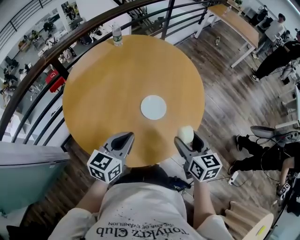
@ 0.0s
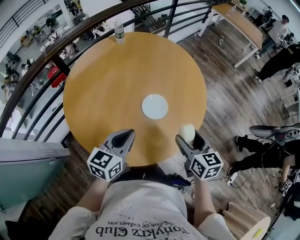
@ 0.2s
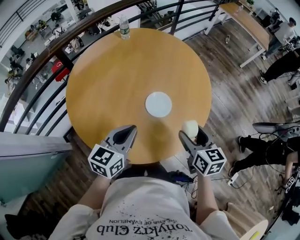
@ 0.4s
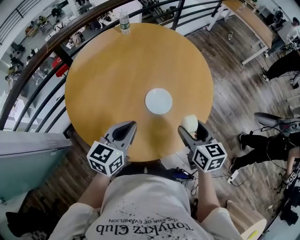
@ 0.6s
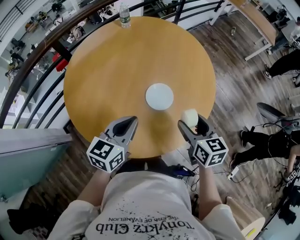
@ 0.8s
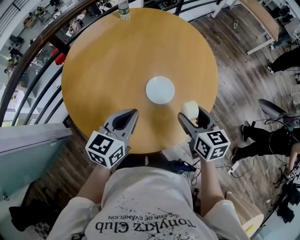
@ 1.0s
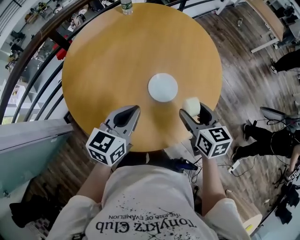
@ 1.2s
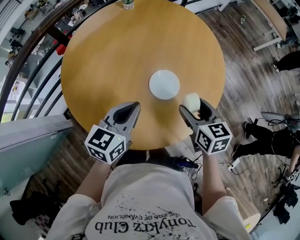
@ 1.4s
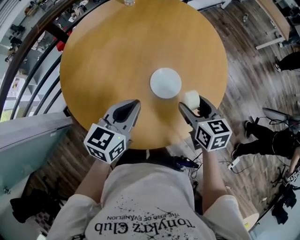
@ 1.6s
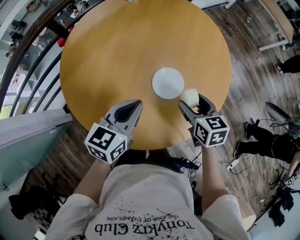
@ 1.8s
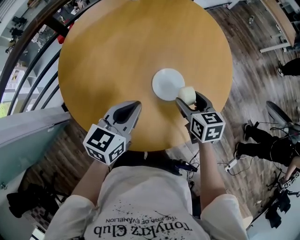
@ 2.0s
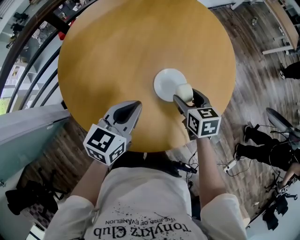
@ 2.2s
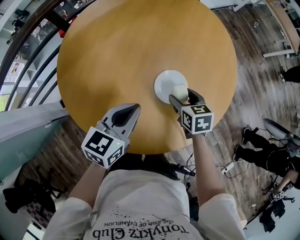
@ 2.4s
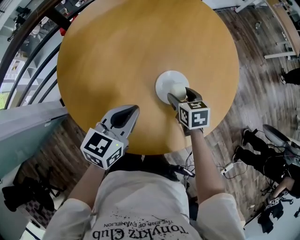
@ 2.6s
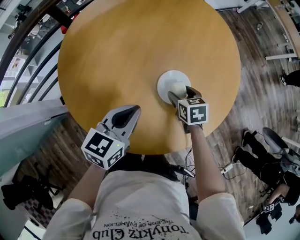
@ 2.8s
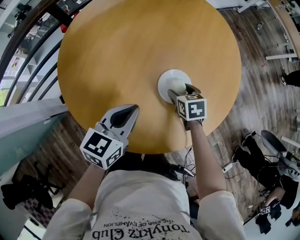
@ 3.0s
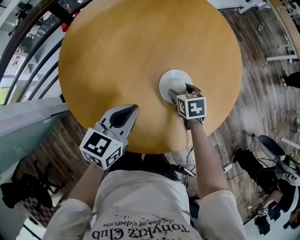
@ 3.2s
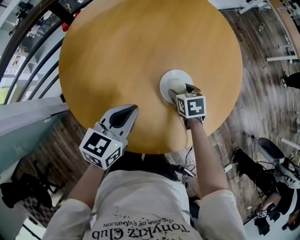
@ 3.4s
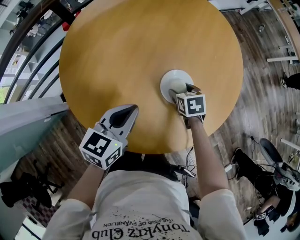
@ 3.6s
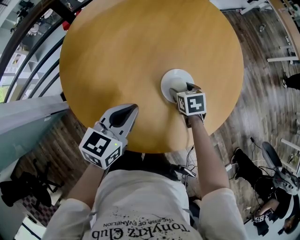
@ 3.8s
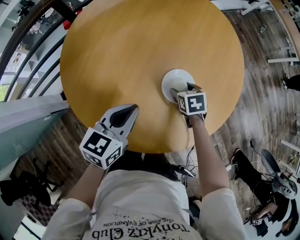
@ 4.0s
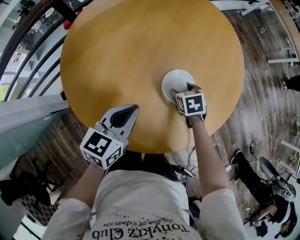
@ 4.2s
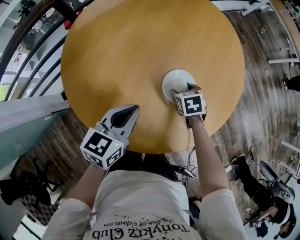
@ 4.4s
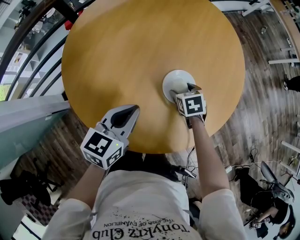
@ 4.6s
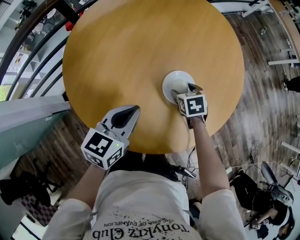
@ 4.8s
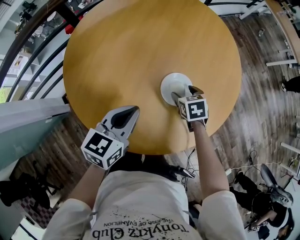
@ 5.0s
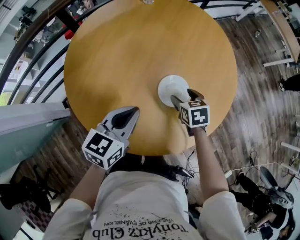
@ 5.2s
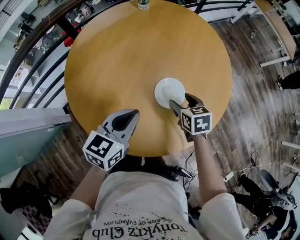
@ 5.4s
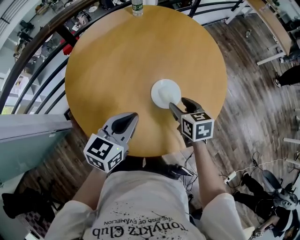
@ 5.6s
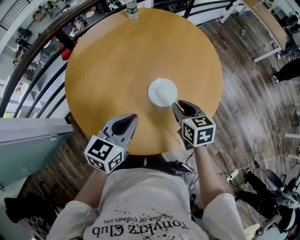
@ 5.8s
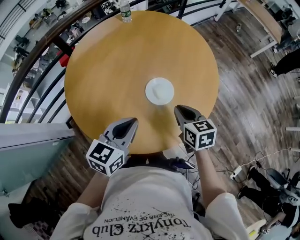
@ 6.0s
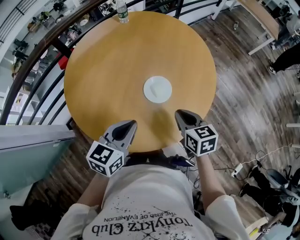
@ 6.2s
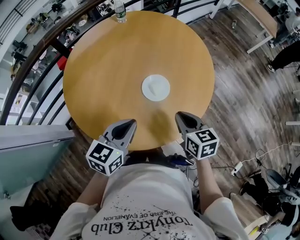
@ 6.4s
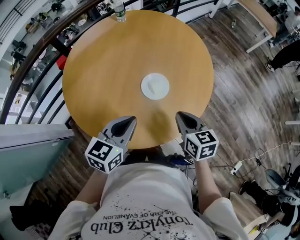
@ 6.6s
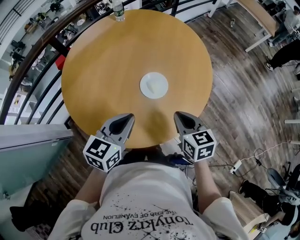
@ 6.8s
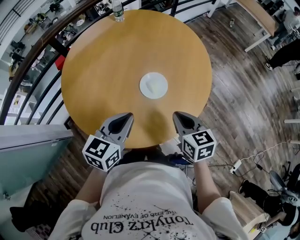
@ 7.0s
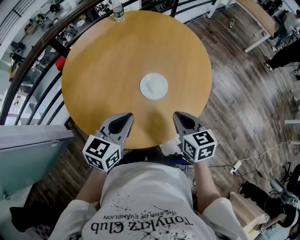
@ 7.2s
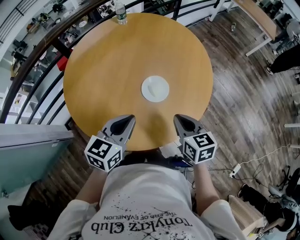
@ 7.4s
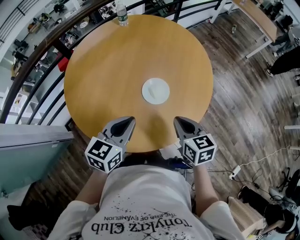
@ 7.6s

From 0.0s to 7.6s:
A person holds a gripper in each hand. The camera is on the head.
From 0.0s to 1.6s: The right gripper heads forward and downward, covering approximately 15 cm; the left gripper is displaced forward by roughly 10 cm.
From 1.6s to 3.0s: The left gripper travels downward by roughly 5 cm. Meanwhile the right gripper is displaced downward and forward by approximately 20 cm, and rotates roughly 20 degrees.
From 3.0s to 4.6s: The grippers make only small movements.
From 4.6s to 6.0s: The left gripper is displaced upward, backward and to the right by approximately 10 cm; the right gripper moves upward and backward, some 20 cm, rotates roughly 30 degrees, and closes up.
From 6.0s to 7.6s: The right gripper is displaced backward by approximately 5 cm.

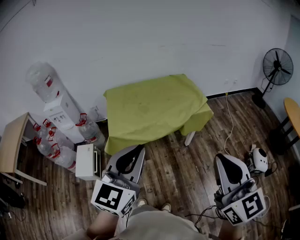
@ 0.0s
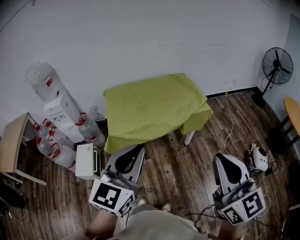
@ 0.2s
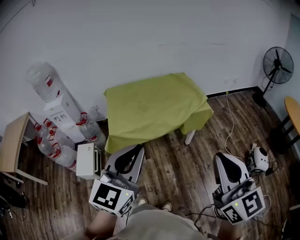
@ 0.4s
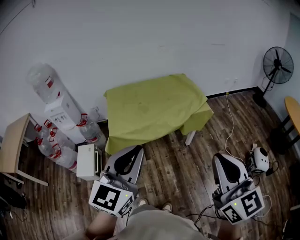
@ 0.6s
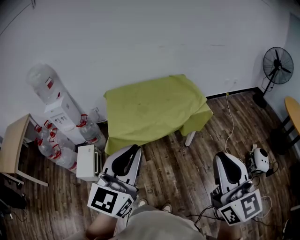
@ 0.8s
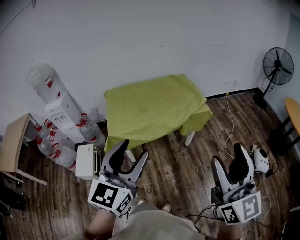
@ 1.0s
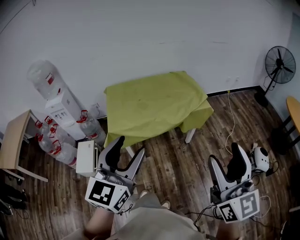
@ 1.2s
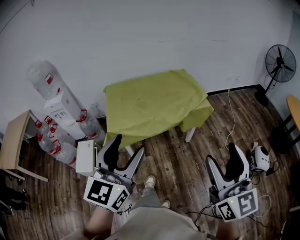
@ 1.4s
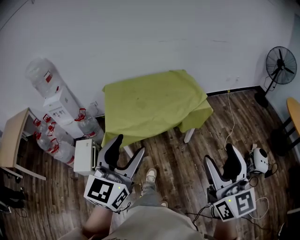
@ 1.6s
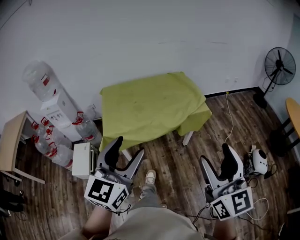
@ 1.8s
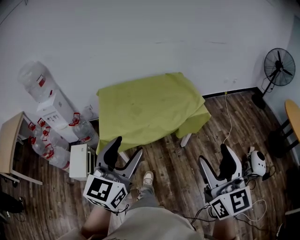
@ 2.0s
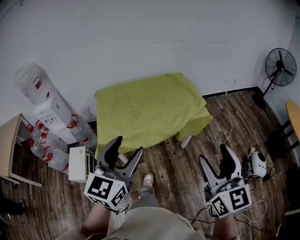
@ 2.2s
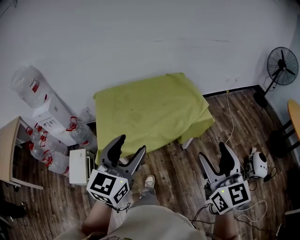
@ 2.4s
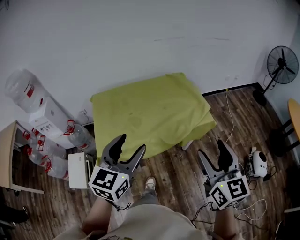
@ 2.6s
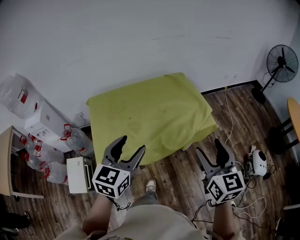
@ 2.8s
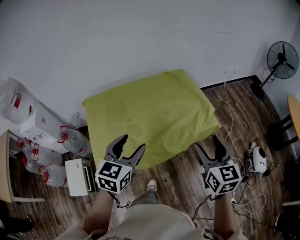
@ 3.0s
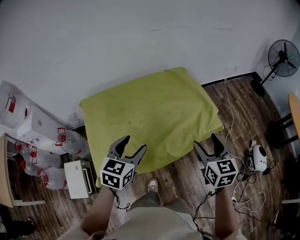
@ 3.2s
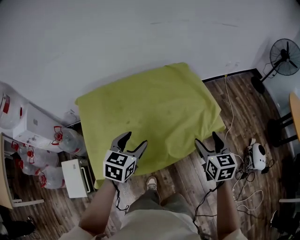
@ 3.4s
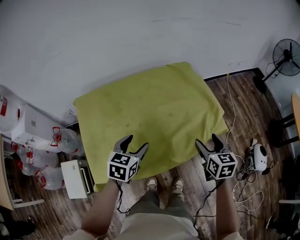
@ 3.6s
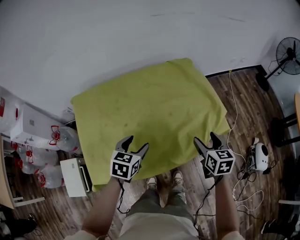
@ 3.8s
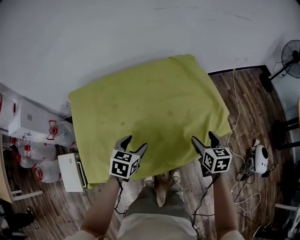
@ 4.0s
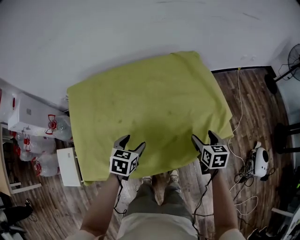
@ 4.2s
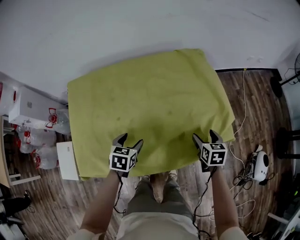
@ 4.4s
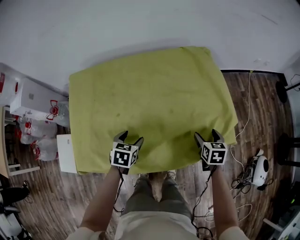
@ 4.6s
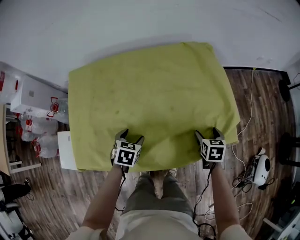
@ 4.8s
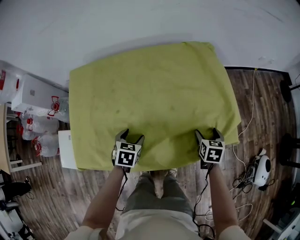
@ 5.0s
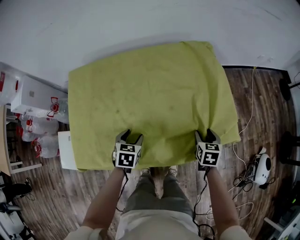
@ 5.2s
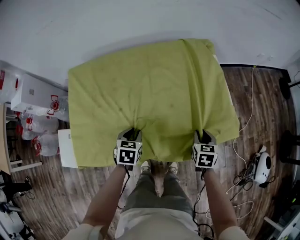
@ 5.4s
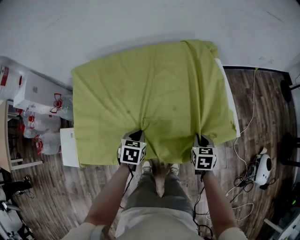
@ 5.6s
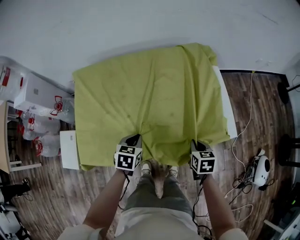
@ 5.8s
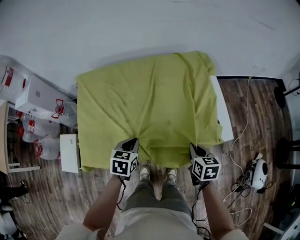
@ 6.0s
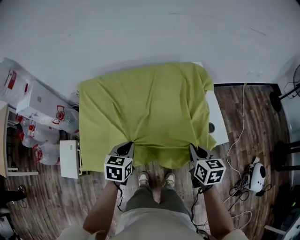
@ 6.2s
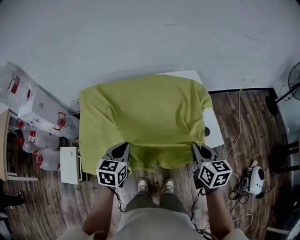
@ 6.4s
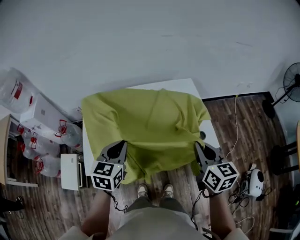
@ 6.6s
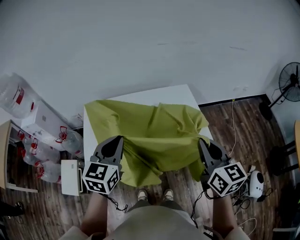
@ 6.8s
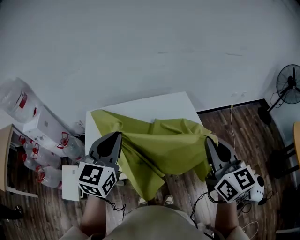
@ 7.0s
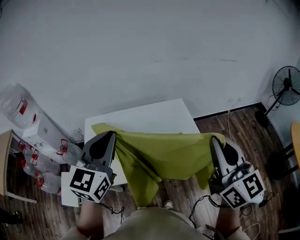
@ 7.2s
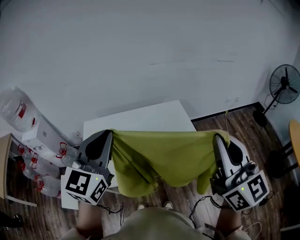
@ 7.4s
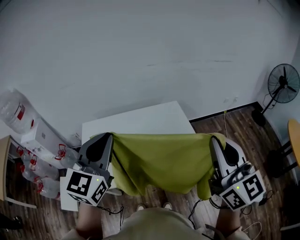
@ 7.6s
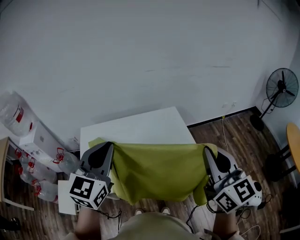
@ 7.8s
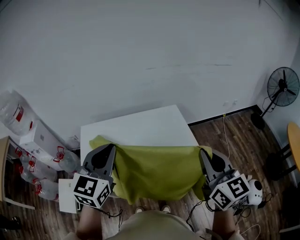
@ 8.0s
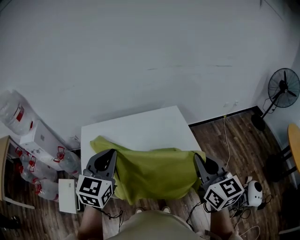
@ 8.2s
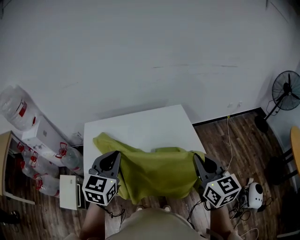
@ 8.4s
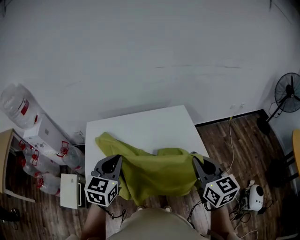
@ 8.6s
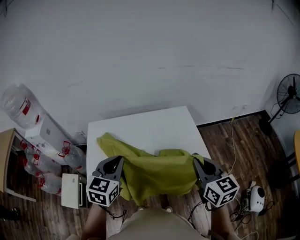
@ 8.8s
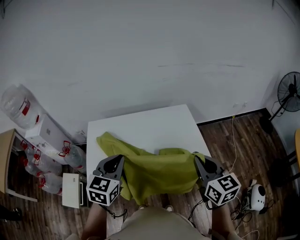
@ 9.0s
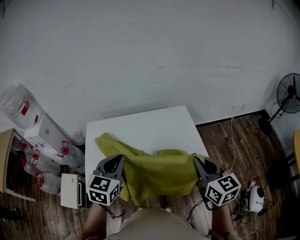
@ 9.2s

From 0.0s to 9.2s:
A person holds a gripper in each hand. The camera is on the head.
From 0.0s to 1.6s: The left gripper opens. Meanwhile the right gripper shifts by roughly 5 cm, and opens up.
From 1.6s to 3.0s: Both grippers are carried forward, roughly 40 cm. The left gripper turns by some 30 degrees; the right gripper swivels roughly 30 degrees.
From 3.0s to 4.6s: The two grippers go about 40 cm downward and forward. The right gripper tilts its fingers some 30 degrees downward. The left gripper tilts its fingers approximately 30 degrees downward.
From 4.6s to 6.2s: The left gripper heads upward and backward, covering some 15 cm, and closes up, while the right gripper heads upward, backward and to the left, covering about 20 cm, and closes its fingers.
From 6.2s to 7.6s: The two grippers go some 40 cm upward. The left gripper points its fingers approximately 40 degrees further upward, while the right gripper points its fingers some 50 degrees further upward.
From 7.6s to 9.2s: Both grippers travel together downward, approximately 15 cm. The right gripper turns by some 20 degrees; the left gripper changes its angle by approximately 20 degrees.

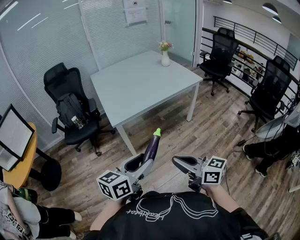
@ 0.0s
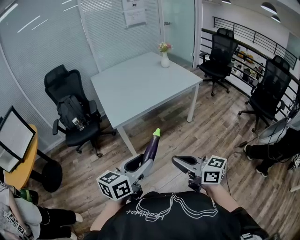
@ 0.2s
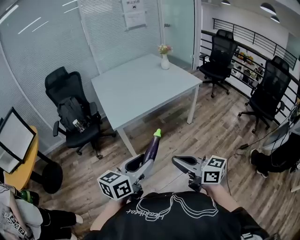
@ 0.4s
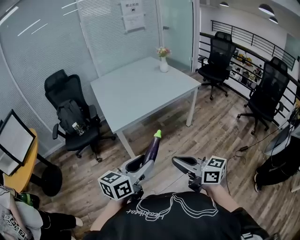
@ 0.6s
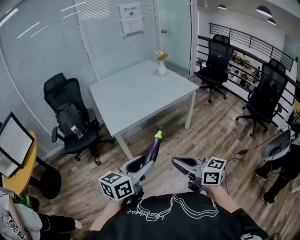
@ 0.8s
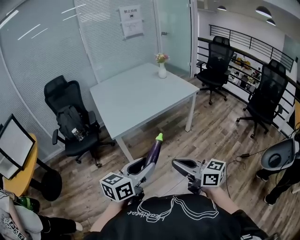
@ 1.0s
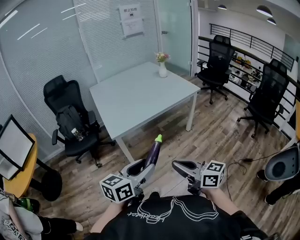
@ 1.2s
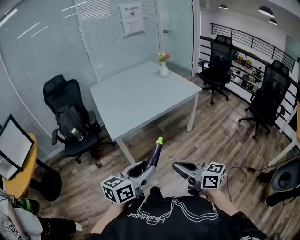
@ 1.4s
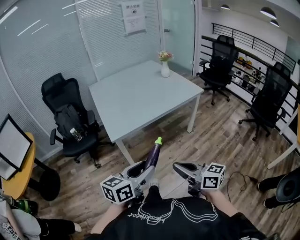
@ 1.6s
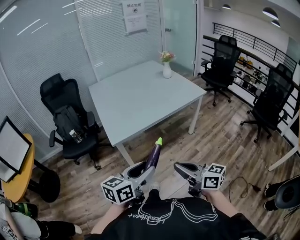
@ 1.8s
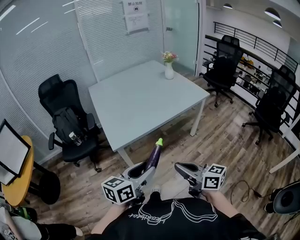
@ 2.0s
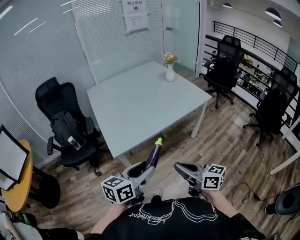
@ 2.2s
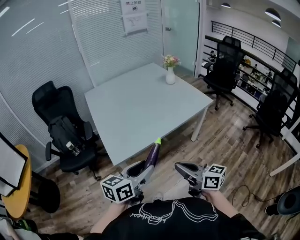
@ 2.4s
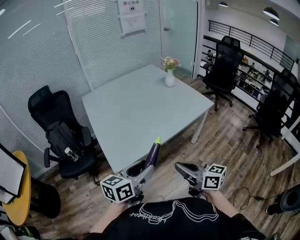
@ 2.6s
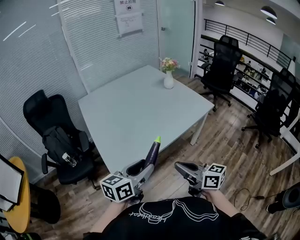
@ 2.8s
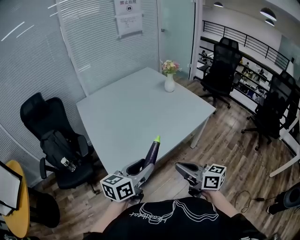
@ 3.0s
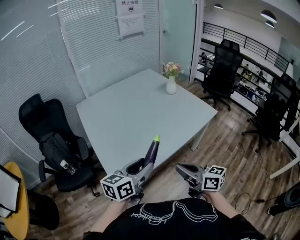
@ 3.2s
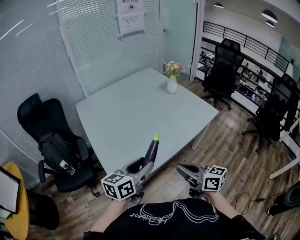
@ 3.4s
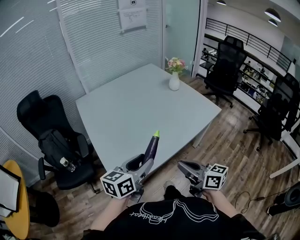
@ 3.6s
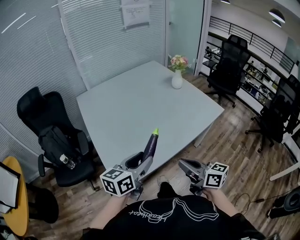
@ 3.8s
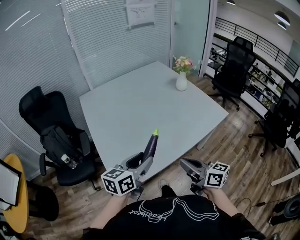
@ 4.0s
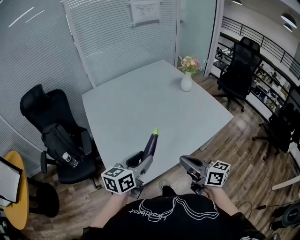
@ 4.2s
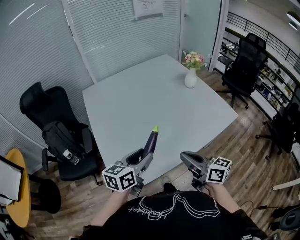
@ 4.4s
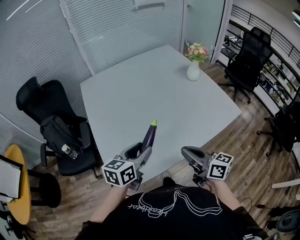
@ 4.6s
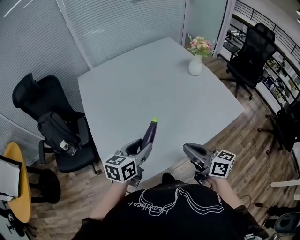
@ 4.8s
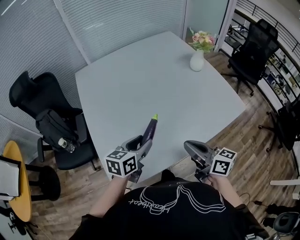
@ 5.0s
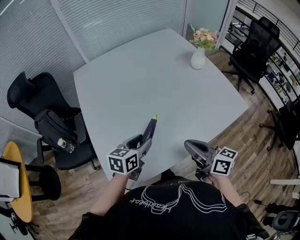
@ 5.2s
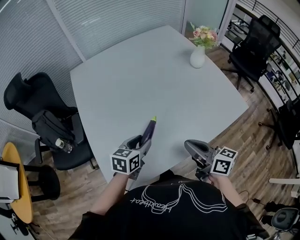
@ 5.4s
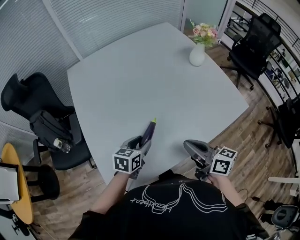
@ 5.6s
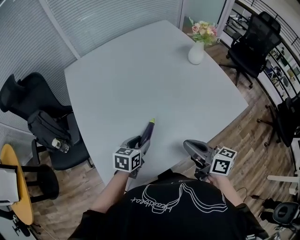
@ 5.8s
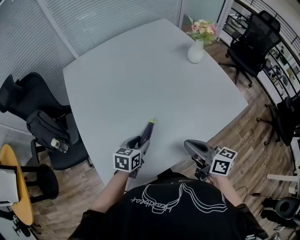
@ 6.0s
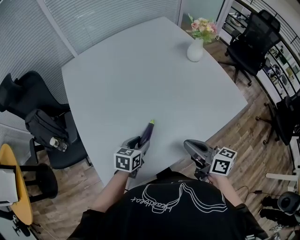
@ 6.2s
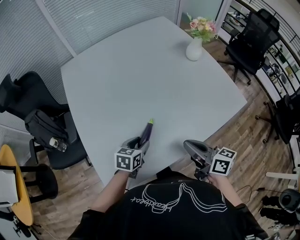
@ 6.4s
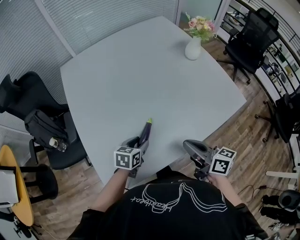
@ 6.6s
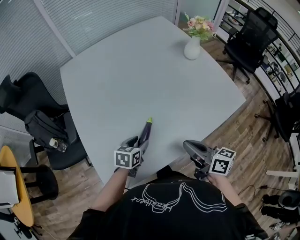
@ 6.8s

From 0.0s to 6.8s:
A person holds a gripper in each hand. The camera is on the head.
From 0.0s to 1.4s: There are only small adjustments of the grippers.
From 1.4s to 2.8s: The grippers both shift forward by approximately 35 cm.
From 2.8s to 4.0s: Both grippers move forward, about 15 cm.
From 4.0s to 5.4s: The left gripper travels forward and downward by some 25 cm, and turns by about 20 degrees. The right gripper shifts roughly 15 cm forward.
From 5.4s to 6.8s: The left gripper heads downward, covering roughly 10 cm.
